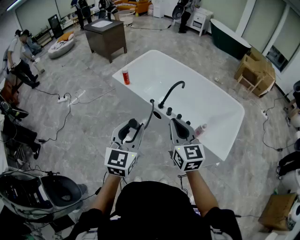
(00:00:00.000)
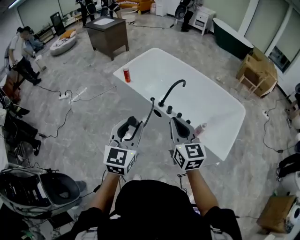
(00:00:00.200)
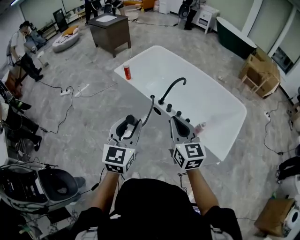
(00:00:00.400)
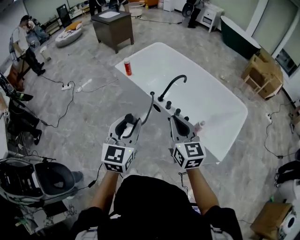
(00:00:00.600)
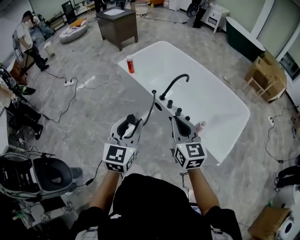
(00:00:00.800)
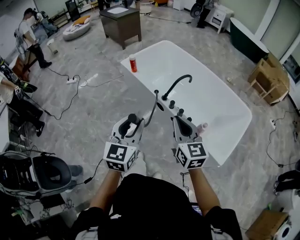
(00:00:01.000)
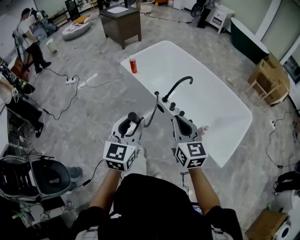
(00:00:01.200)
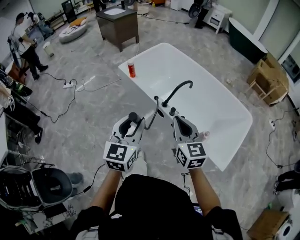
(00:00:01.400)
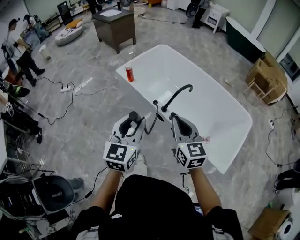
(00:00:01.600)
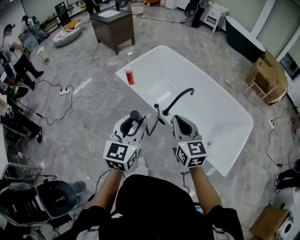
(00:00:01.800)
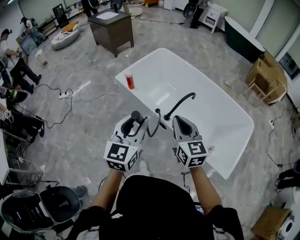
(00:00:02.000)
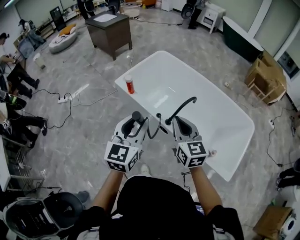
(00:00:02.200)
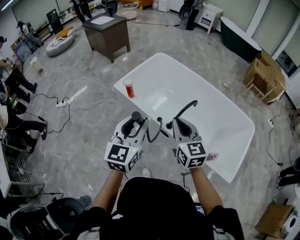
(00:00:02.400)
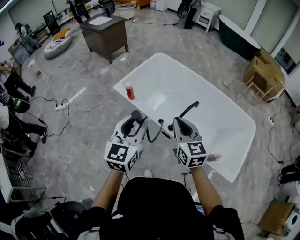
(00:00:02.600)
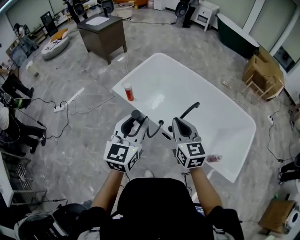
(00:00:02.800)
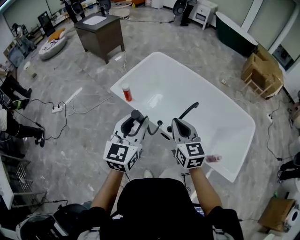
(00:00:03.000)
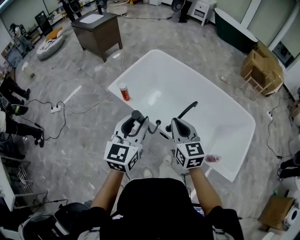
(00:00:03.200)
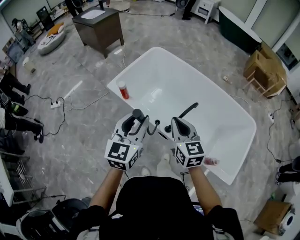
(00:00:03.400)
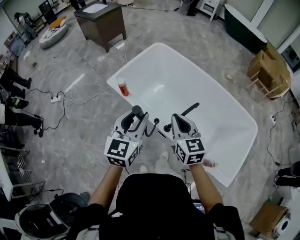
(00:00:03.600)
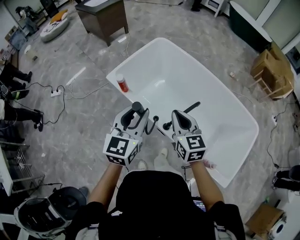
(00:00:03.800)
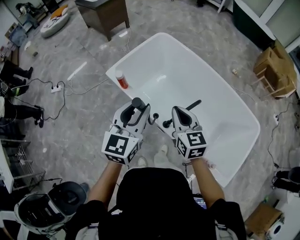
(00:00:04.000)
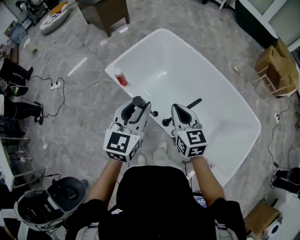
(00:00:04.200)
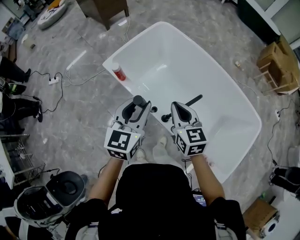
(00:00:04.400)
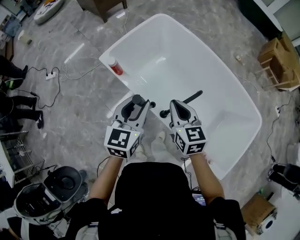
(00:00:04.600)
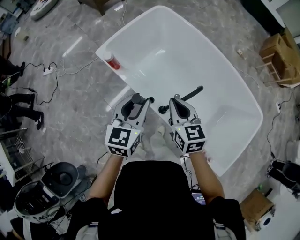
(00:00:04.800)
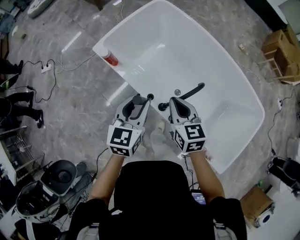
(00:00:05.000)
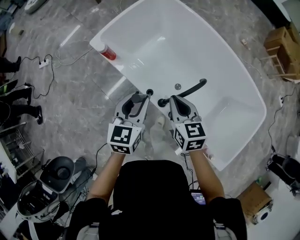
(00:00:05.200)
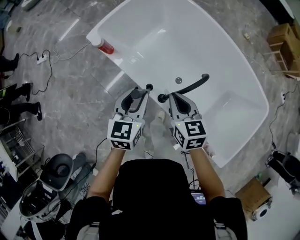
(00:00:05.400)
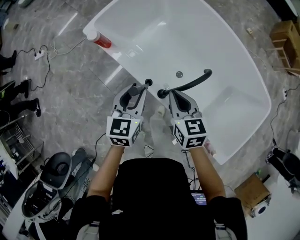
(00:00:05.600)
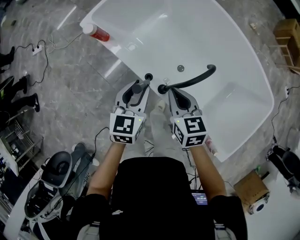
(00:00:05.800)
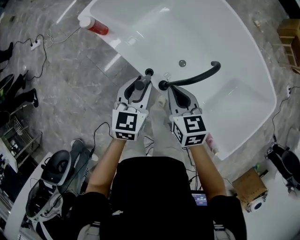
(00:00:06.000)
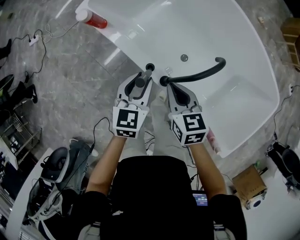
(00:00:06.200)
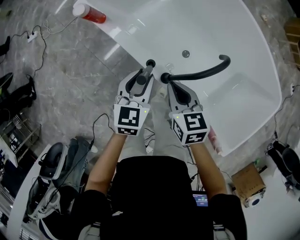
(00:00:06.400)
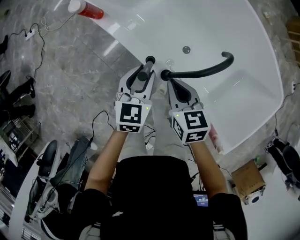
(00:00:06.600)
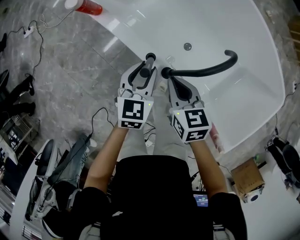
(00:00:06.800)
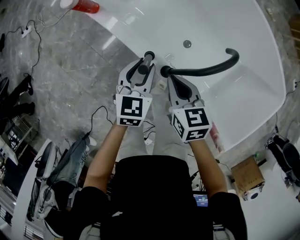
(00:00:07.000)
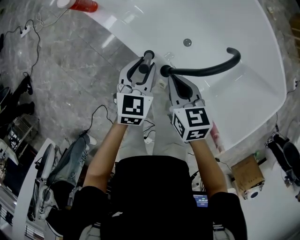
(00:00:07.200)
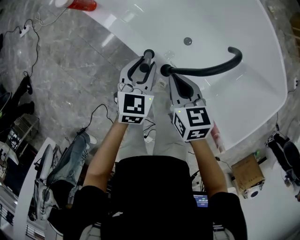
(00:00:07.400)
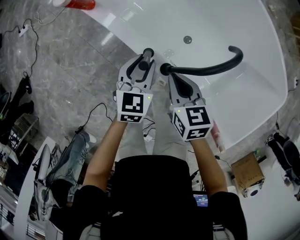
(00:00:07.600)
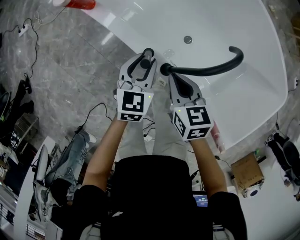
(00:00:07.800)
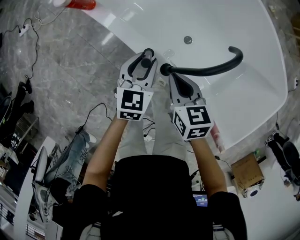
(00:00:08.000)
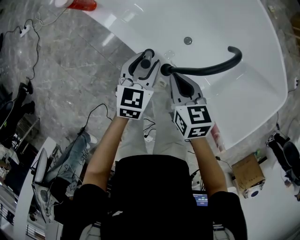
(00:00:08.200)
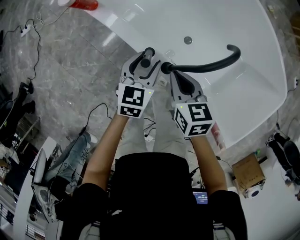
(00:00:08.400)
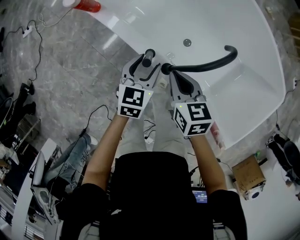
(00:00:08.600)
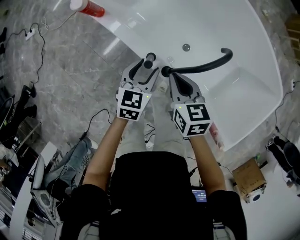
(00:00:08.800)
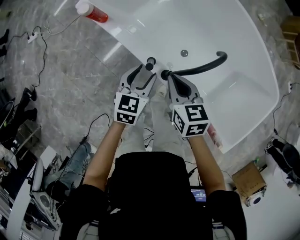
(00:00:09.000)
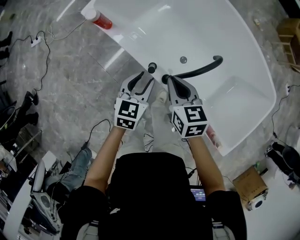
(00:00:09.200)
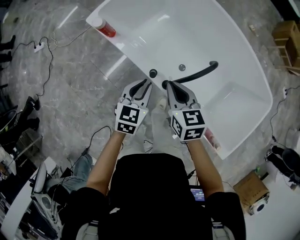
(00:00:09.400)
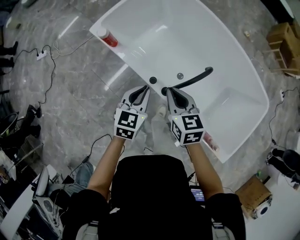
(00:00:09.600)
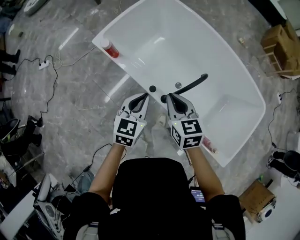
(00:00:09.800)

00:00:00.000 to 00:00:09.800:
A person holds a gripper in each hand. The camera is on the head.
00:00:00.000 to 00:00:01.400: The two grippers go roughly 10 cm forward.
00:00:01.400 to 00:00:02.800: The left gripper is displaced forward by approximately 25 cm. The right gripper moves forward and to the left, approximately 25 cm.
00:00:02.800 to 00:00:04.200: The right gripper is displaced forward, downward and to the right by roughly 20 cm, while the left gripper shifts roughly 20 cm forward and to the right.
00:00:04.200 to 00:00:05.600: Both grippers travel together downward, approximately 25 cm. The left gripper rotates some 20 degrees.
00:00:05.600 to 00:00:07.000: Both grippers travel together downward, about 15 cm.
00:00:07.000 to 00:00:08.400: There are only small adjustments of the grippers.
00:00:08.400 to 00:00:09.800: Both grippers travel together upward, approximately 20 cm. The left gripper closes its fingers.

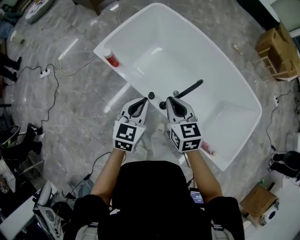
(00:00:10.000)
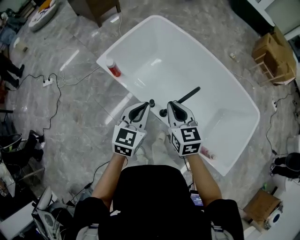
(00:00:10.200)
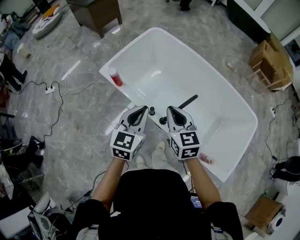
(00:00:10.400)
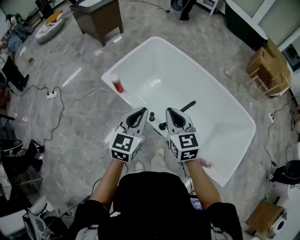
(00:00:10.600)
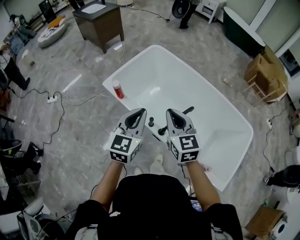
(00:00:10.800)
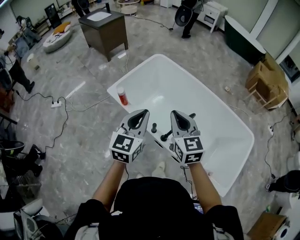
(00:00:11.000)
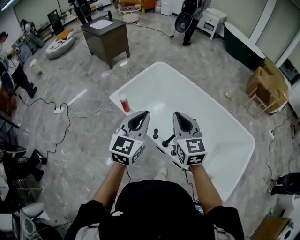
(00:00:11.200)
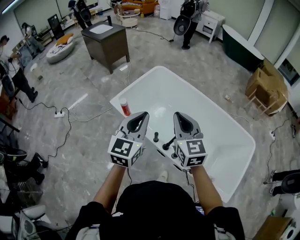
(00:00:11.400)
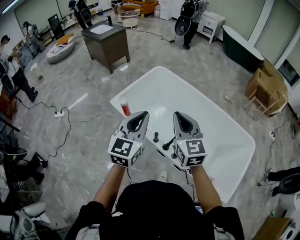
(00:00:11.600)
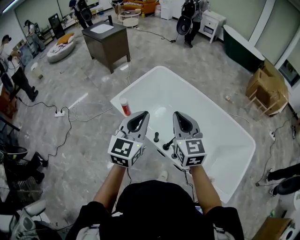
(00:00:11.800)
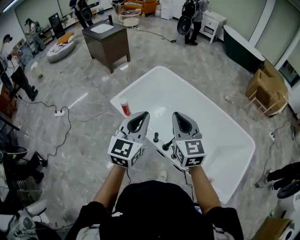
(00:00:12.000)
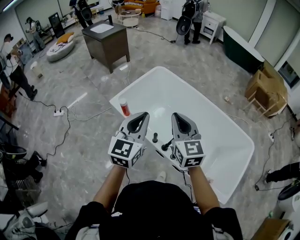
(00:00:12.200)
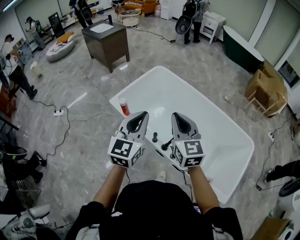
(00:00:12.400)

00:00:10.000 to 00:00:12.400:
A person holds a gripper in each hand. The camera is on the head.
00:00:10.000 to 00:00:11.200: Both grippers travel together upward, approximately 20 cm. The right gripper swivels roughly 20 degrees.
00:00:11.200 to 00:00:12.400: The grippers make only small movements.

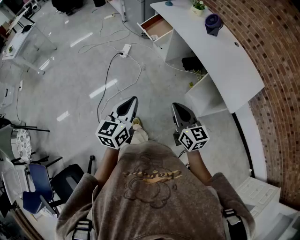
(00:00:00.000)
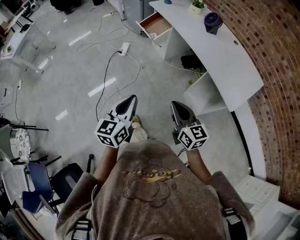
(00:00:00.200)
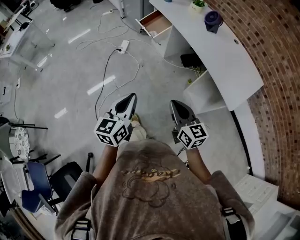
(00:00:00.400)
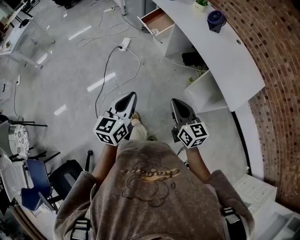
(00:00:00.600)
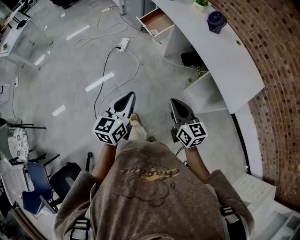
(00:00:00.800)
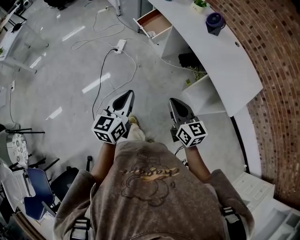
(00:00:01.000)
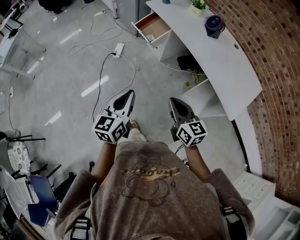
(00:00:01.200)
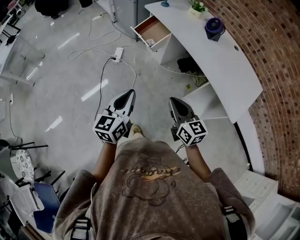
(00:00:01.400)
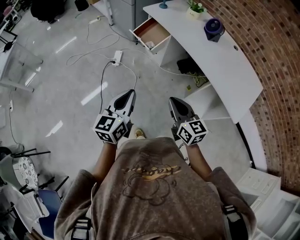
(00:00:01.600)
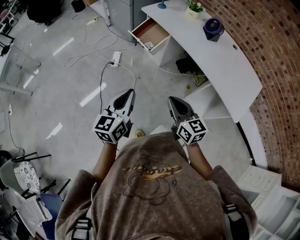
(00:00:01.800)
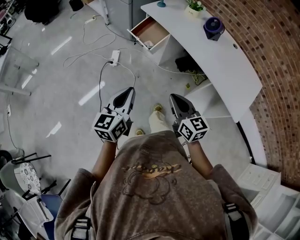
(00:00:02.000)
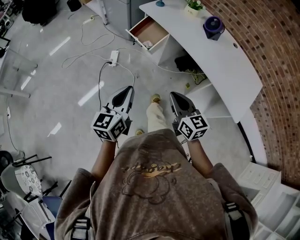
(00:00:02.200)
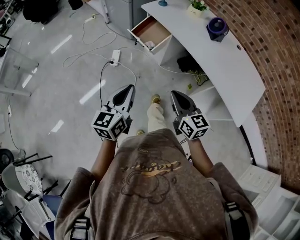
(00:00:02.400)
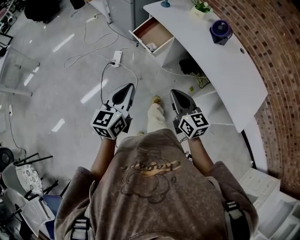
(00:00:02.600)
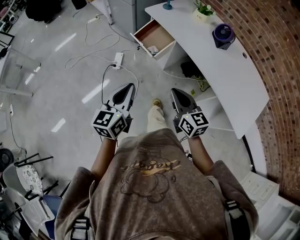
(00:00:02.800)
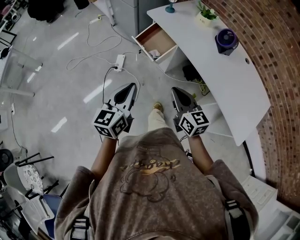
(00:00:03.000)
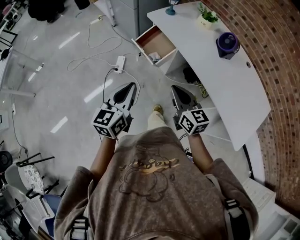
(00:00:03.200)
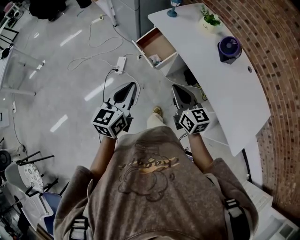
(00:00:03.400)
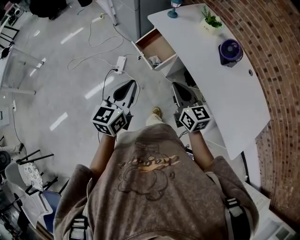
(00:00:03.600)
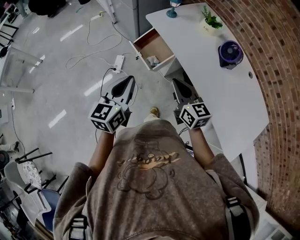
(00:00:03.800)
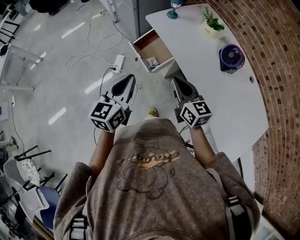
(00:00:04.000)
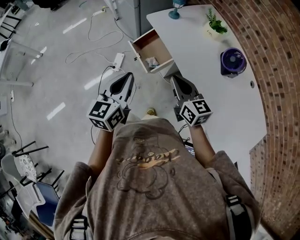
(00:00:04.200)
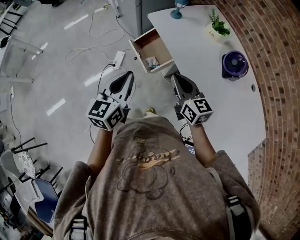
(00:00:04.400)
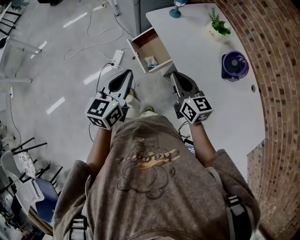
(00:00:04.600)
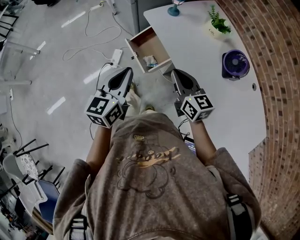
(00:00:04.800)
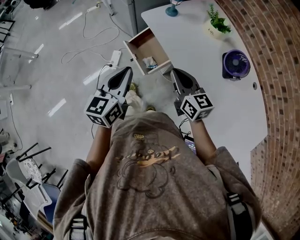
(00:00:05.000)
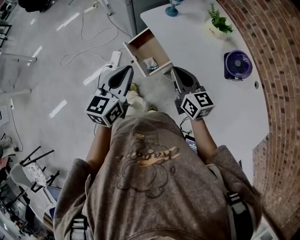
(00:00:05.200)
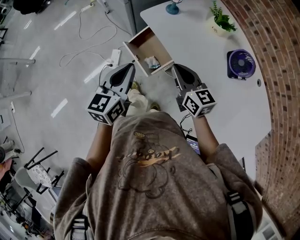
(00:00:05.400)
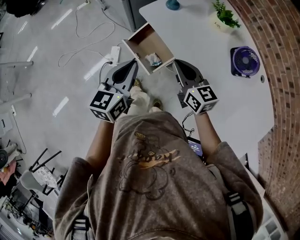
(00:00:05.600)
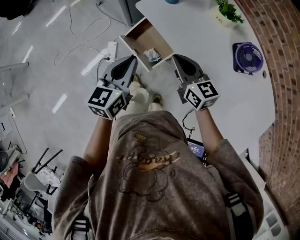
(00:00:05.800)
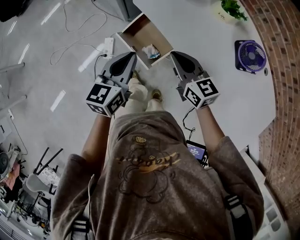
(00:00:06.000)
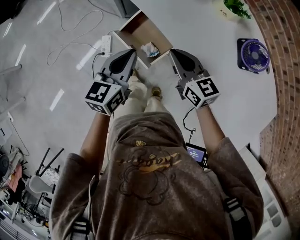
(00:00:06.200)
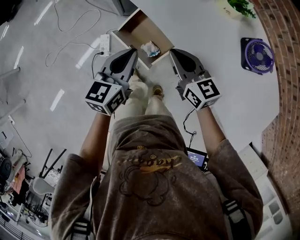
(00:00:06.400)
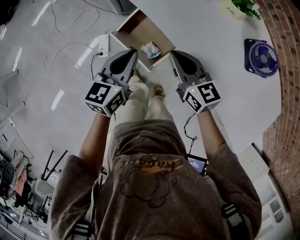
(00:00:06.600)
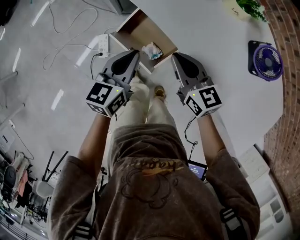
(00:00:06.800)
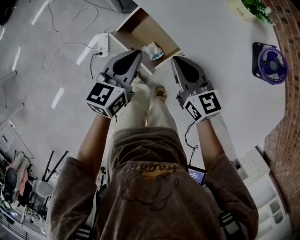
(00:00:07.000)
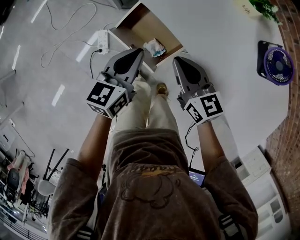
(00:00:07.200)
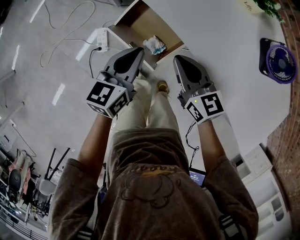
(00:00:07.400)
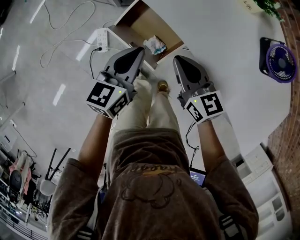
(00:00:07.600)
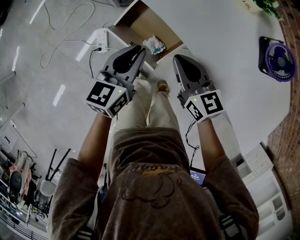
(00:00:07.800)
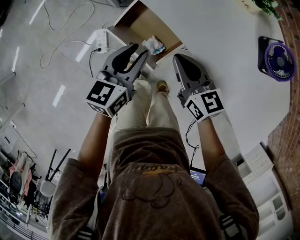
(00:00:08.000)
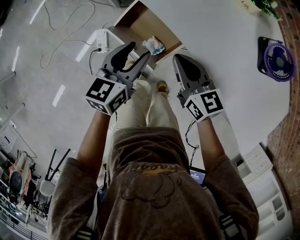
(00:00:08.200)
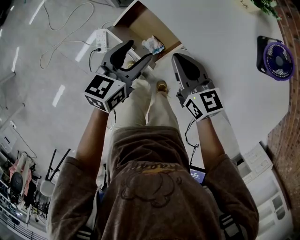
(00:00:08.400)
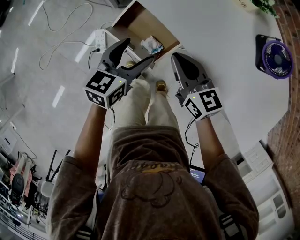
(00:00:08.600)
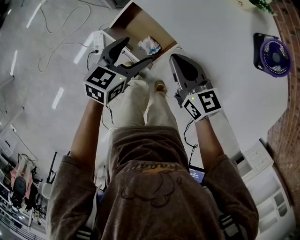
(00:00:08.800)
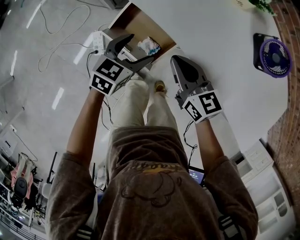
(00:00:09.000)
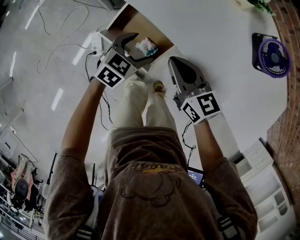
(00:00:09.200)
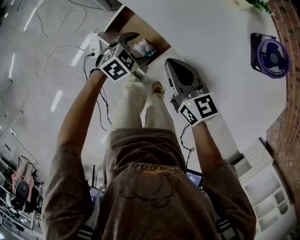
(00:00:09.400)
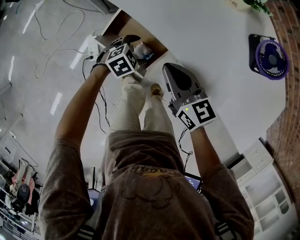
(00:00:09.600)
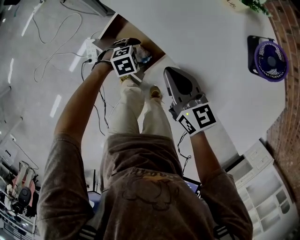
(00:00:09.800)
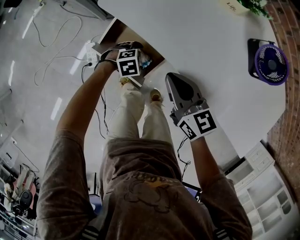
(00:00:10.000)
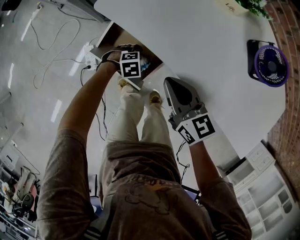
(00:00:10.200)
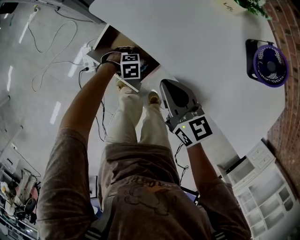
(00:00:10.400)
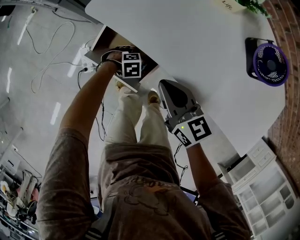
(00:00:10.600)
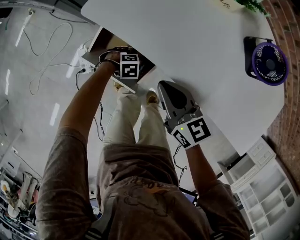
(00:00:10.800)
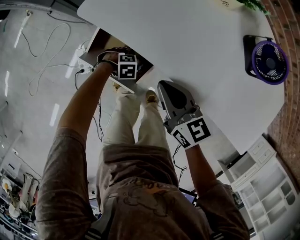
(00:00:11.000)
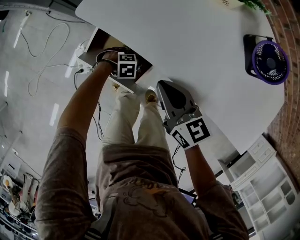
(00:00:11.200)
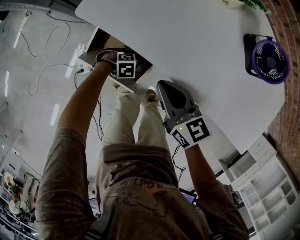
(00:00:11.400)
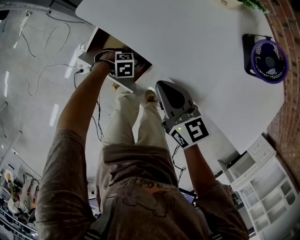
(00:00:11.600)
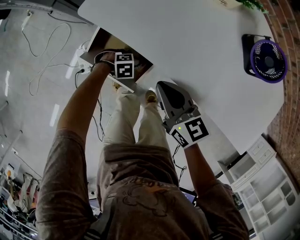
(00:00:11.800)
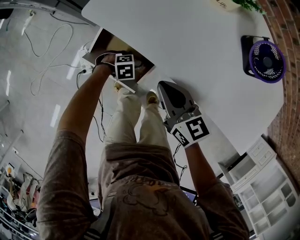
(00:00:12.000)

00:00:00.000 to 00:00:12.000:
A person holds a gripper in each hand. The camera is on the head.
00:00:00.000 to 00:00:01.600: The right gripper is displaced forward and to the left by roughly 20 cm. Meanwhile the left gripper travels forward by roughly 20 cm.
00:00:01.600 to 00:00:03.000: Both grippers travel together forward, about 20 cm.
00:00:03.000 to 00:00:04.400: The two grippers go some 20 cm forward.
00:00:04.400 to 00:00:06.000: Both grippers move forward and downward, approximately 20 cm.
00:00:06.000 to 00:00:07.600: Both grippers travel together downward, some 10 cm.
00:00:07.600 to 00:00:09.000: The left gripper travels downward by about 5 cm, rotates about 30 degrees, and opens its fingers.
00:00:09.000 to 00:00:10.400: The left gripper heads downward, covering approximately 25 cm, and tilts its fingers about 30 degrees downward.
00:00:10.400 to 00:00:12.000: The left gripper closes up.
